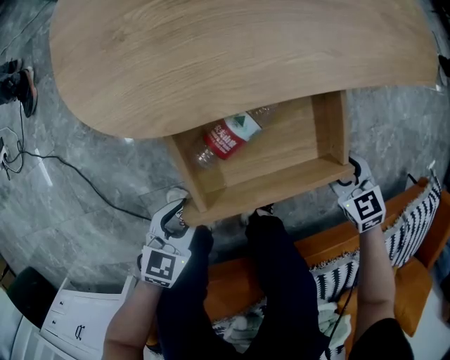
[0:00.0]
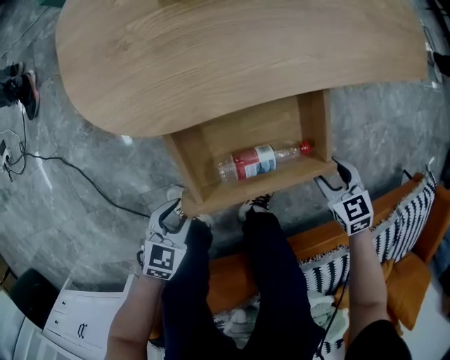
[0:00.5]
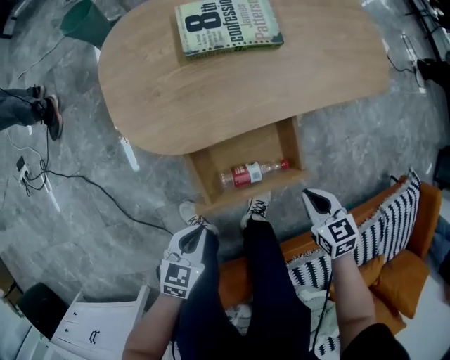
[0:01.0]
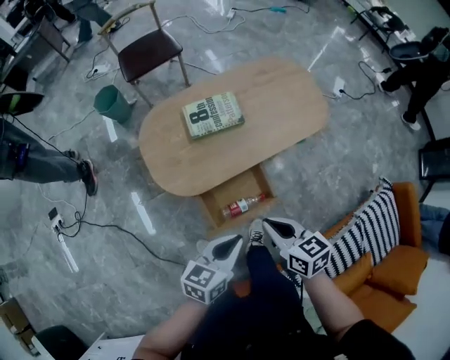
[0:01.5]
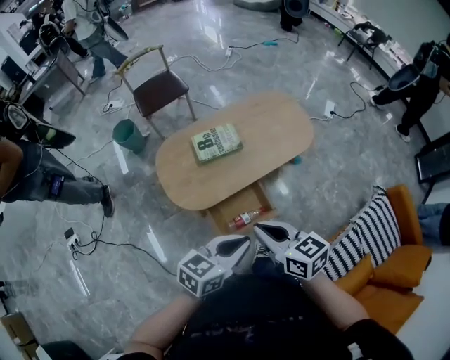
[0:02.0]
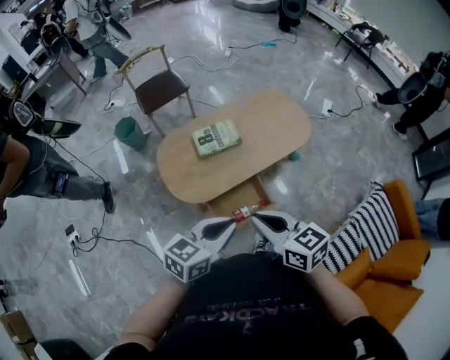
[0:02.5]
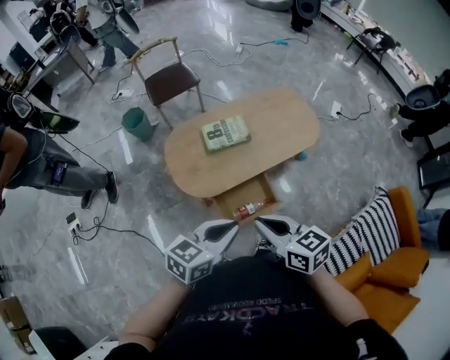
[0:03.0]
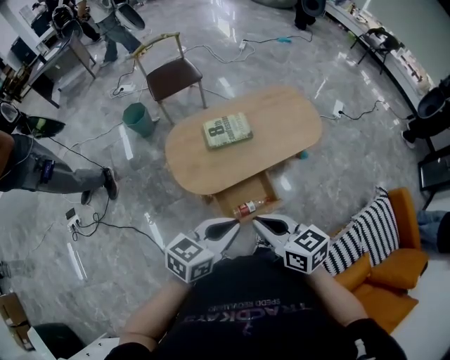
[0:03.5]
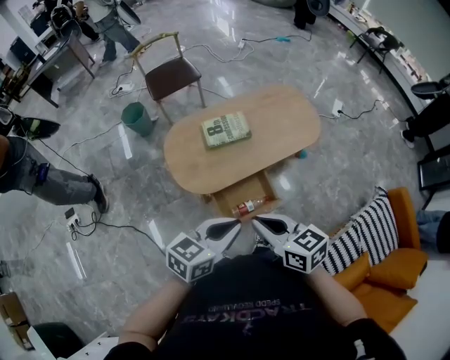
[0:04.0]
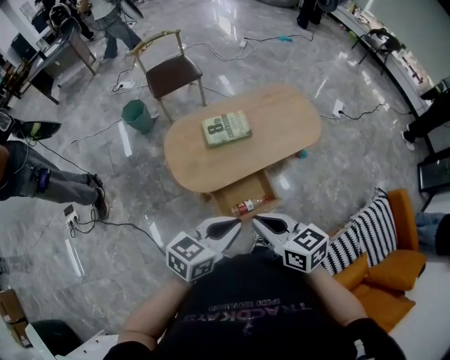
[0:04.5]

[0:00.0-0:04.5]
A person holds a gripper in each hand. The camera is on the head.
0:00.0 to 0:02.0: Both grippers travel together upward, approximately 60 cm. The right gripper tips its fingers upward by some 30 degrees, and closes, while the left gripper rotates about 30 degrees, and closes.
0:02.0 to 0:04.5: The left gripper shifts by approximately 5 cm.

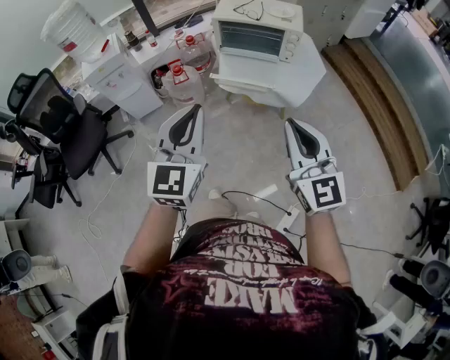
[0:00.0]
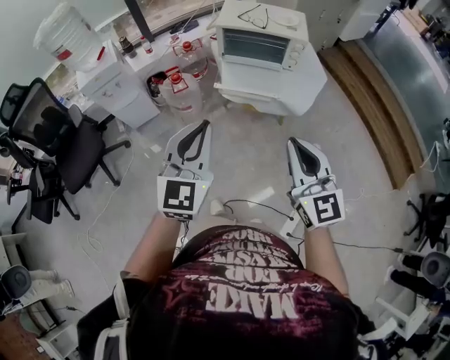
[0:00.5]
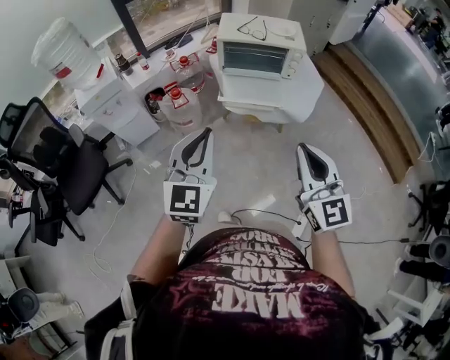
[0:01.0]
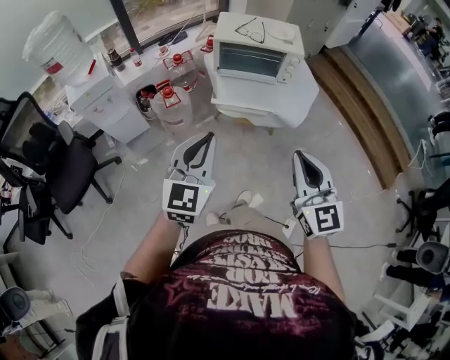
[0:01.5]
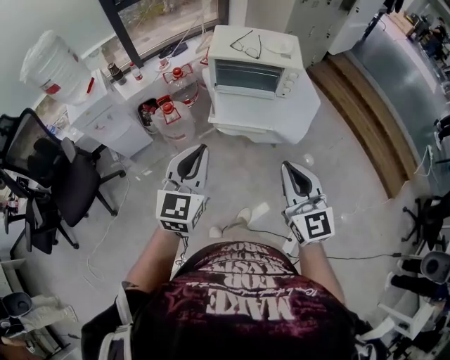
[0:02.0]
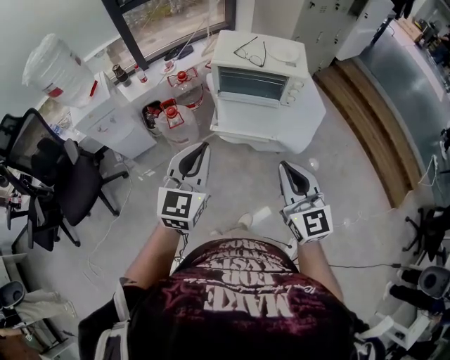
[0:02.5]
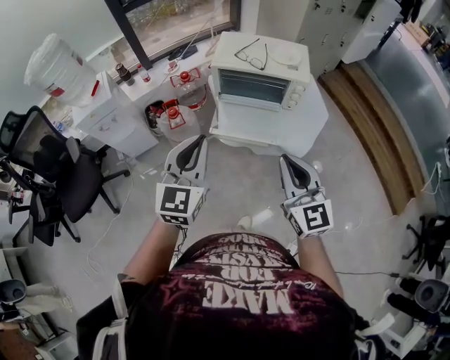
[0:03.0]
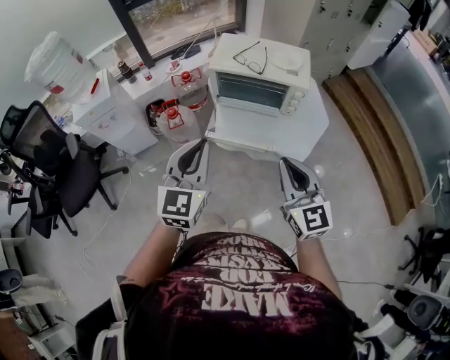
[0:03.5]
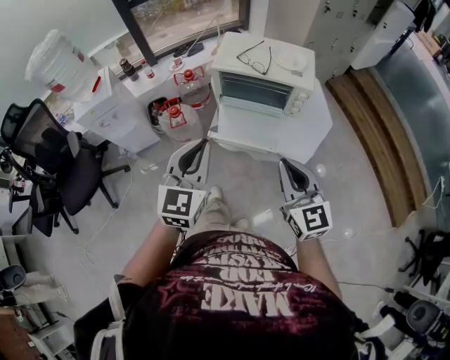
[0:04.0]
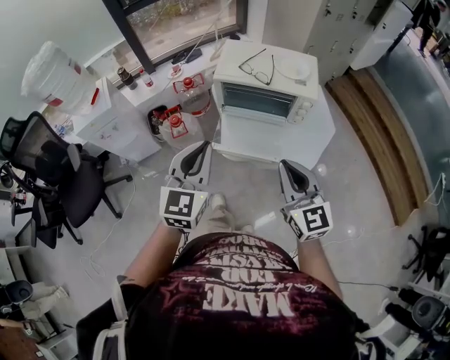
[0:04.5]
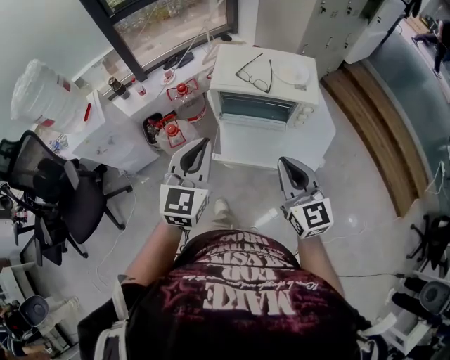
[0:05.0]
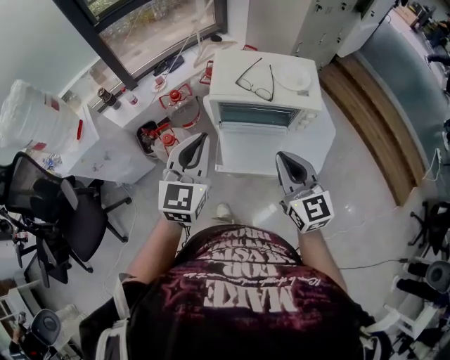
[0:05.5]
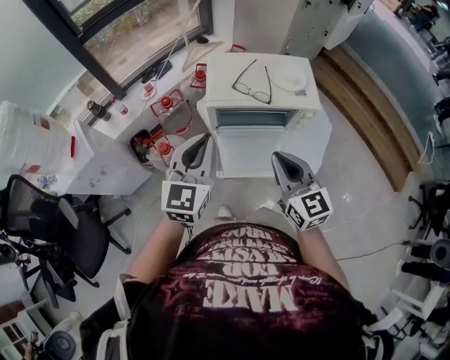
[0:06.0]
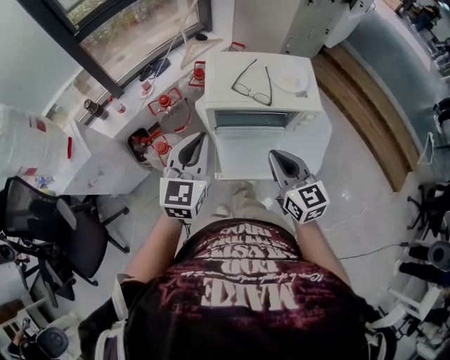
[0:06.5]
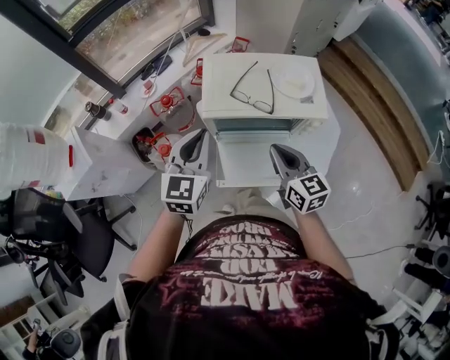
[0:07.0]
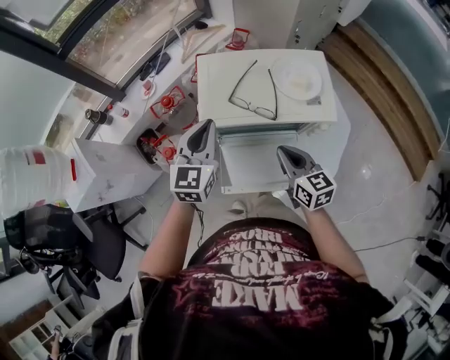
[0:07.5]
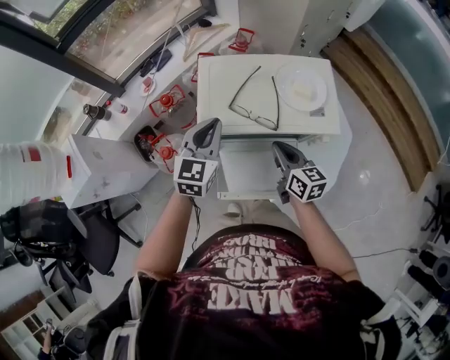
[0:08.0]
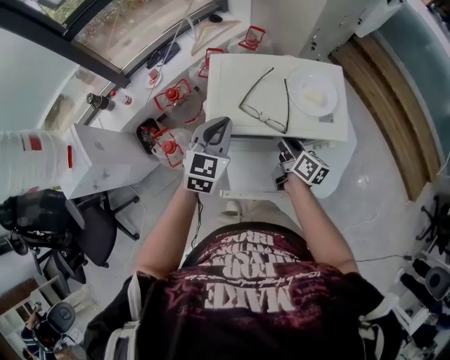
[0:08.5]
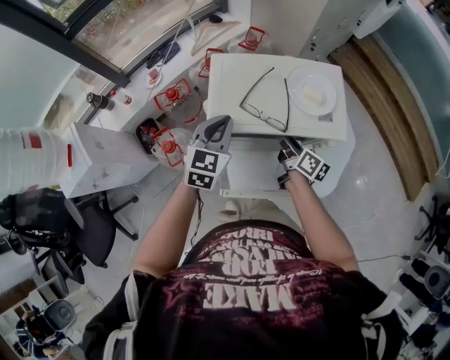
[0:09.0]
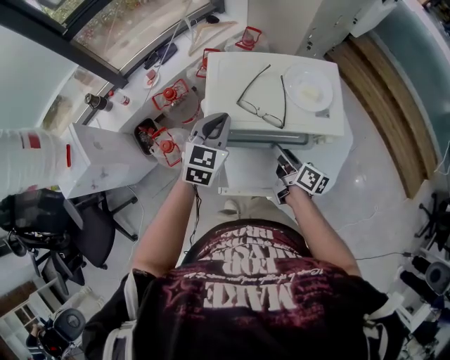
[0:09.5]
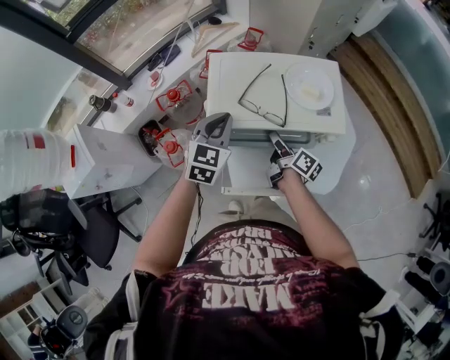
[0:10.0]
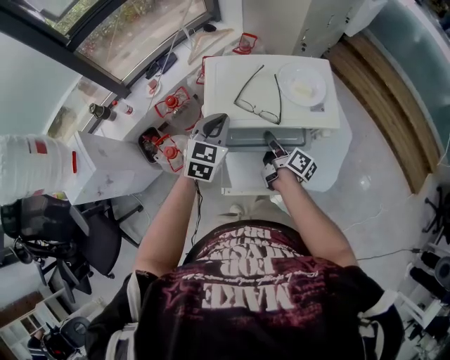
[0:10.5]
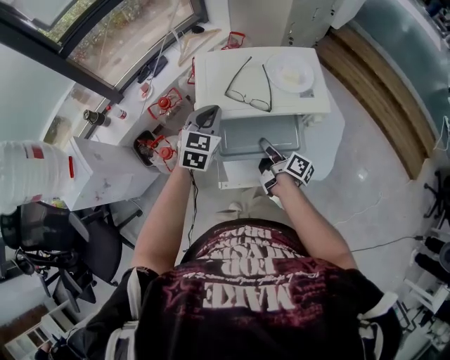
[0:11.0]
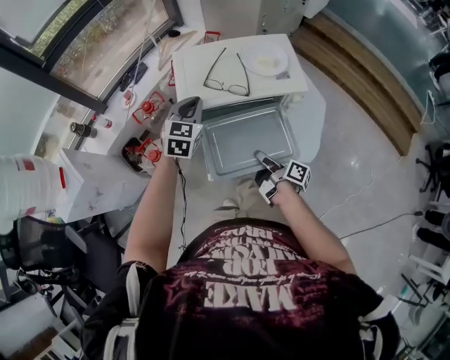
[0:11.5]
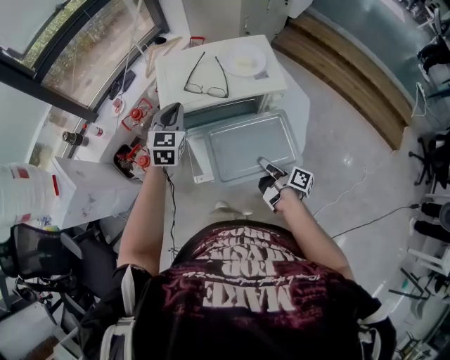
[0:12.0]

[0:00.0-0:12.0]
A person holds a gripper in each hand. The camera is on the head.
0:00.0 to 0:02.0: The left gripper travels forward, downward and to the left by some 15 cm. Meanwhile the right gripper goes approximately 10 cm forward.
0:02.0 to 0:04.0: Both grippers move forward and to the right, some 10 cm.
0:04.0 to 0:06.0: The left gripper shifts approximately 20 cm forward. Meanwhile the right gripper is displaced forward and to the left by about 20 cm.
0:06.0 to 0:08.0: The left gripper travels forward and downward by approximately 25 cm. Meanwhile the right gripper travels downward and forward by roughly 25 cm, and rotates about 30 degrees.
0:08.0 to 0:10.0: The right gripper moves forward and backward over approximately 5 cm, changing direction 2 times, rolls clockwise, seen from behind, by some 40 degrees, and opens.
0:10.0 to 0:12.0: The right gripper heads backward, covering roughly 20 cm, and closes.

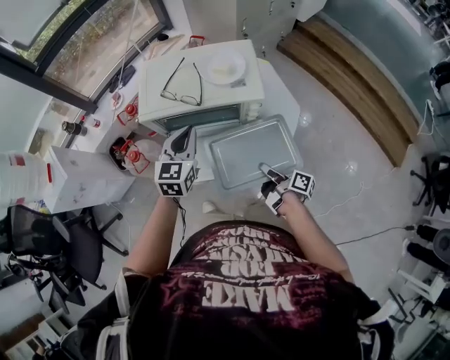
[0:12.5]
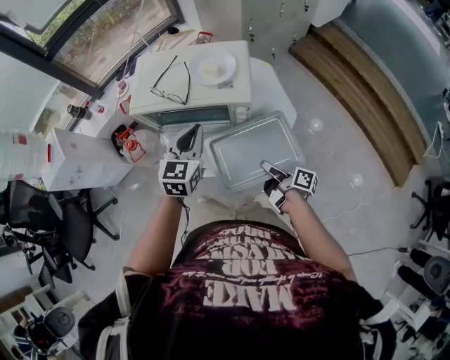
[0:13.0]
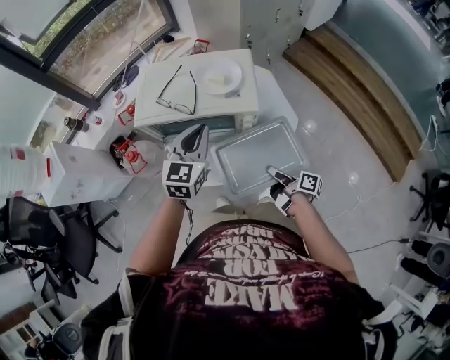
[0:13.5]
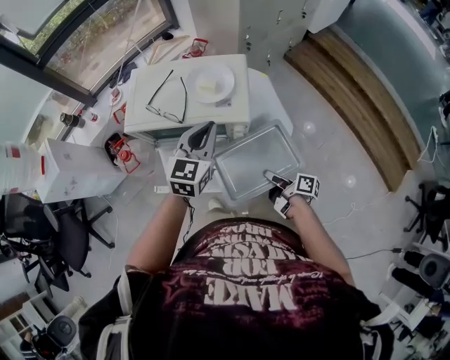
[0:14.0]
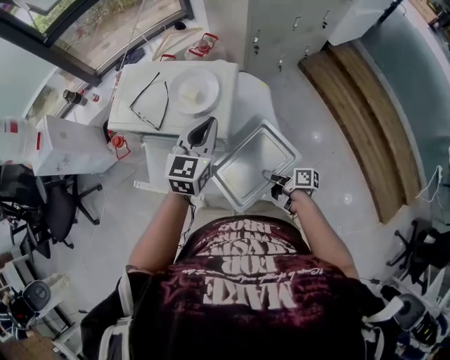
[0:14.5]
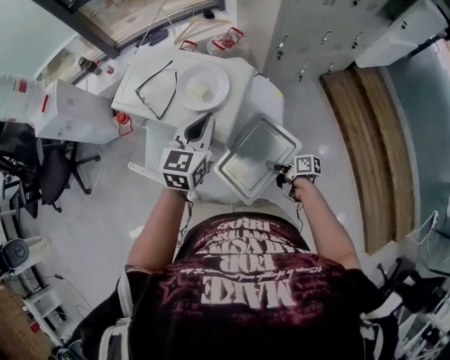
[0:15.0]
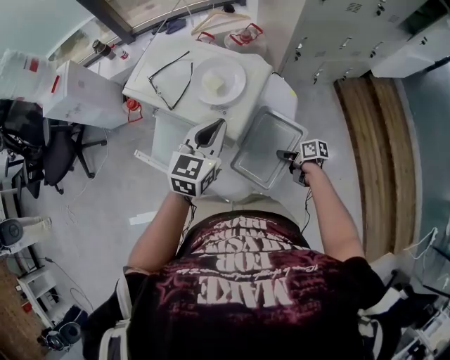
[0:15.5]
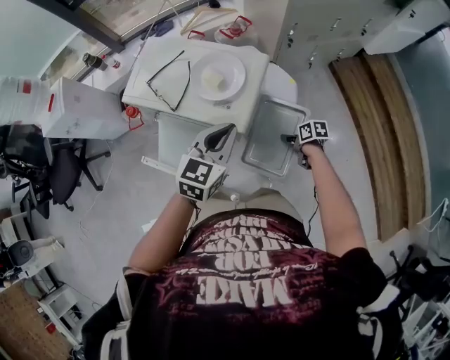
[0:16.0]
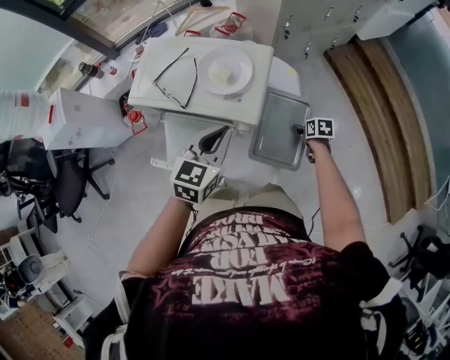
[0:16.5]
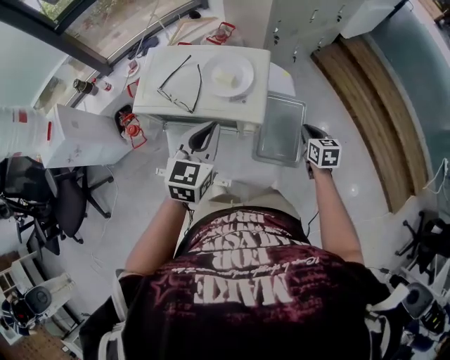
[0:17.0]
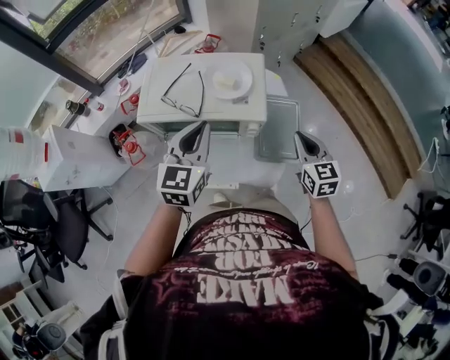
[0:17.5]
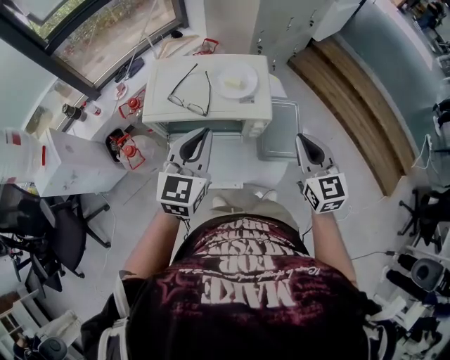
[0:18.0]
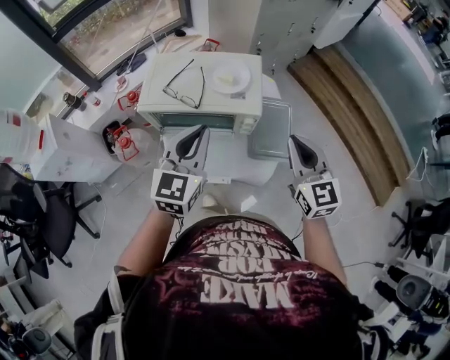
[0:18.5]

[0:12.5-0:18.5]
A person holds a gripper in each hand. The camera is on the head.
0:12.5 to 0:14.5: The left gripper is displaced to the right by approximately 20 cm, while the right gripper is displaced to the right and forward by roughly 20 cm, and turns by roughly 40 degrees.
0:14.5 to 0:16.5: The right gripper moves about 20 cm, tilts its fingers about 40 degrees downward, and opens up. The left gripper shifts by approximately 10 cm.
0:16.5 to 0:18.5: The left gripper goes about 15 cm upward, to the left and backward; the right gripper goes approximately 40 cm upward and backward, angles its fingers upward, by about 50 degrees, and closes its fingers.

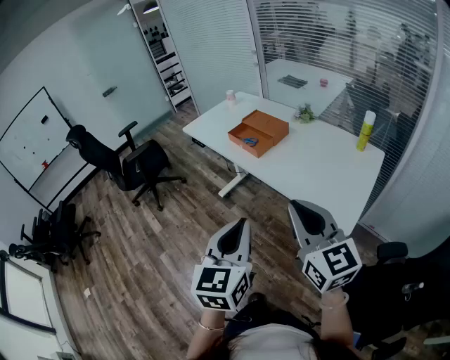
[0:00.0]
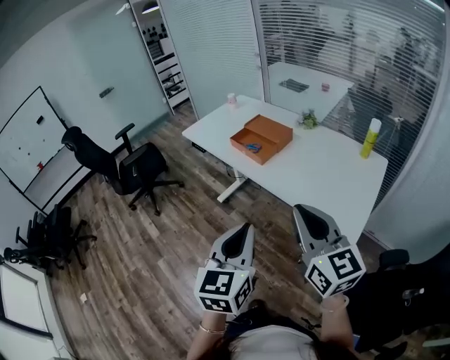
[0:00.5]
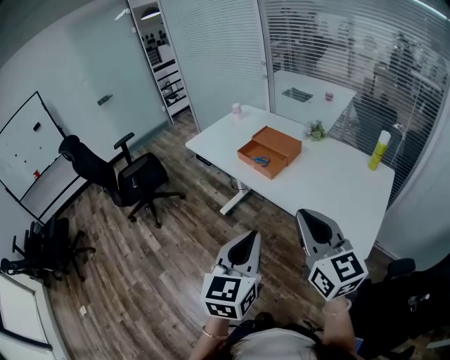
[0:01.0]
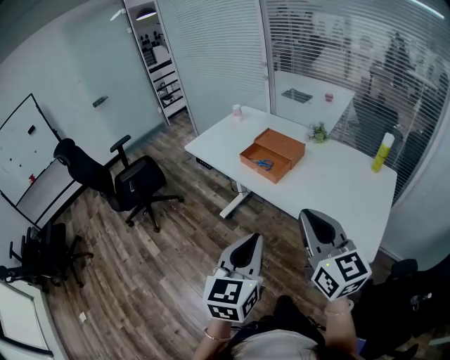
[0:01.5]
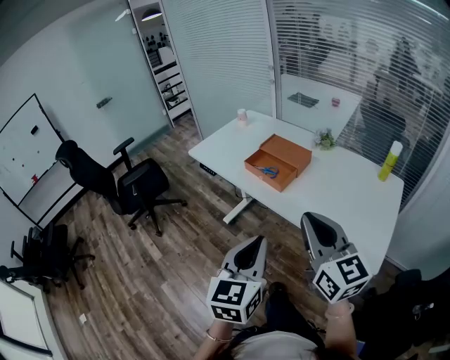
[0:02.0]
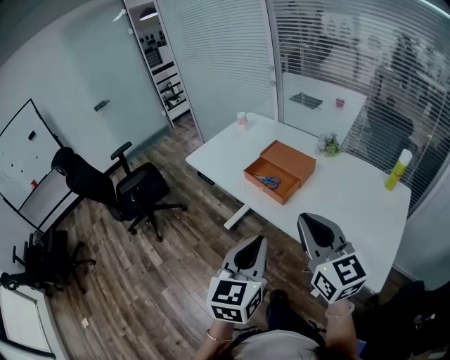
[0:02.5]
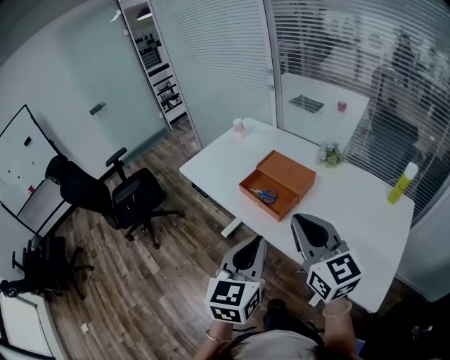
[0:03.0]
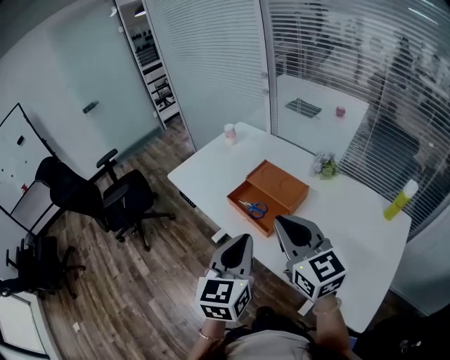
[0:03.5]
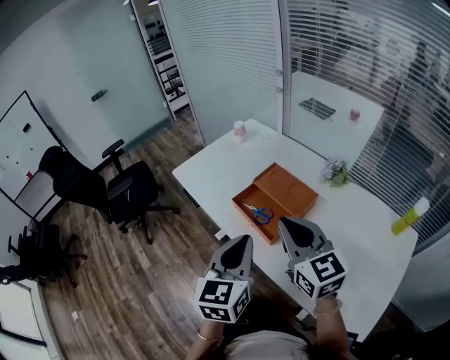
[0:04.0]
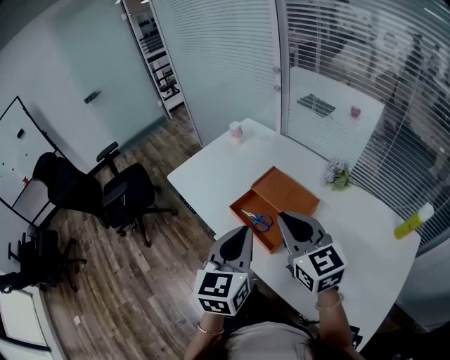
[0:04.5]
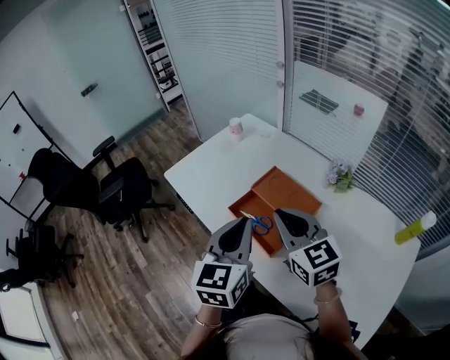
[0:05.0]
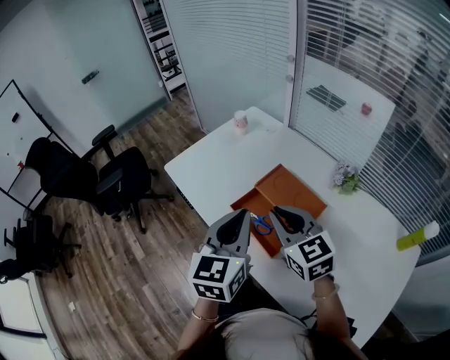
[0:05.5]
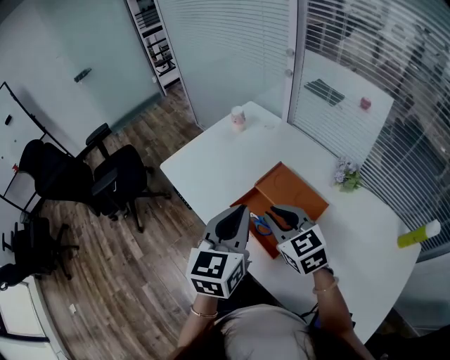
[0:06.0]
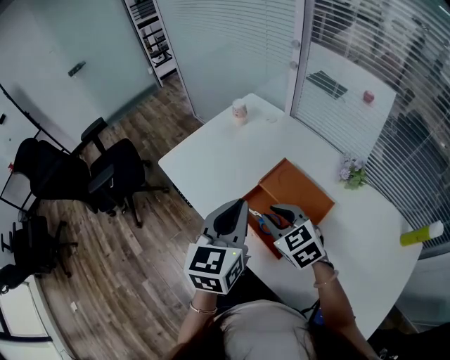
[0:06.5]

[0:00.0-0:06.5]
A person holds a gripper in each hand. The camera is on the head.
0:00.0 to 0:02.0: The two grippers go some 20 cm forward and to the left.
0:02.0 to 0:04.5: The grippers both shift forward by approximately 35 cm.
0:04.5 to 0:06.5: The right gripper moves downward and forward, about 20 cm, and turns by about 30 degrees; the left gripper heads forward, covering about 15 cm.